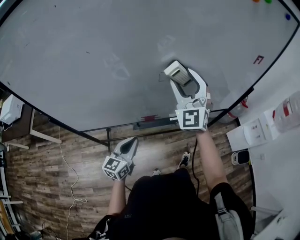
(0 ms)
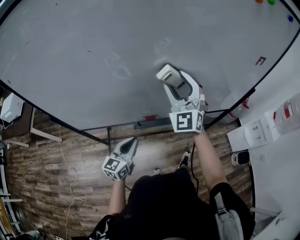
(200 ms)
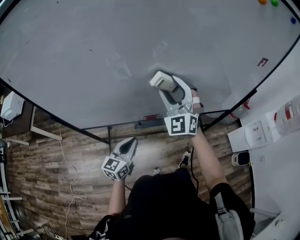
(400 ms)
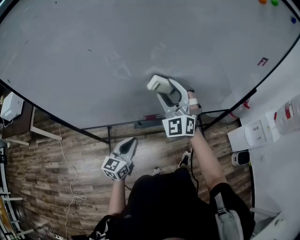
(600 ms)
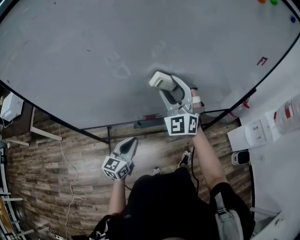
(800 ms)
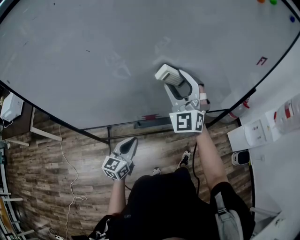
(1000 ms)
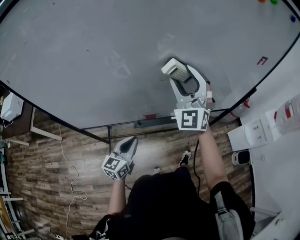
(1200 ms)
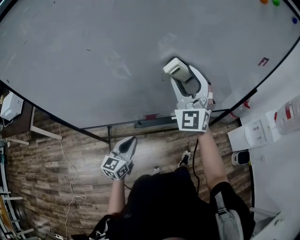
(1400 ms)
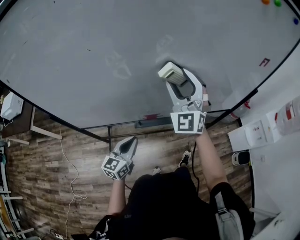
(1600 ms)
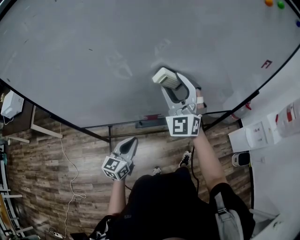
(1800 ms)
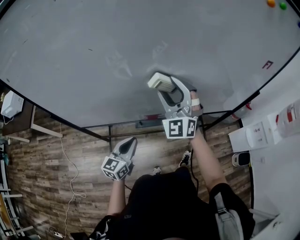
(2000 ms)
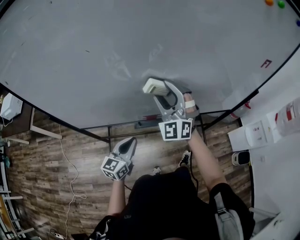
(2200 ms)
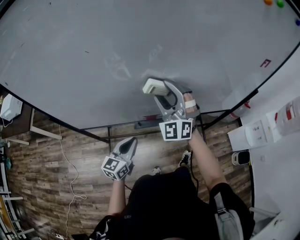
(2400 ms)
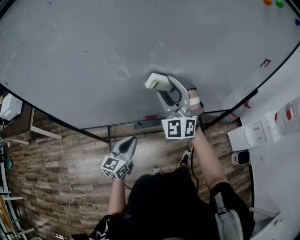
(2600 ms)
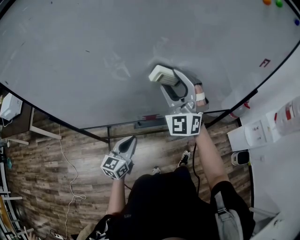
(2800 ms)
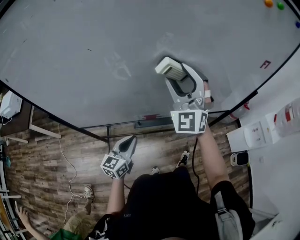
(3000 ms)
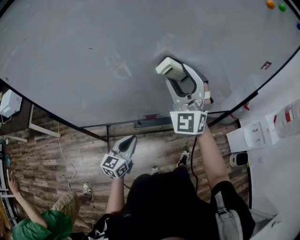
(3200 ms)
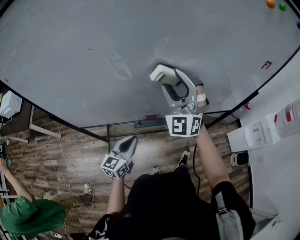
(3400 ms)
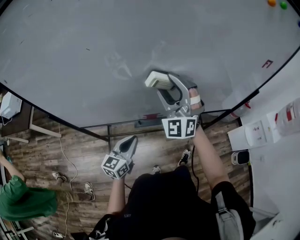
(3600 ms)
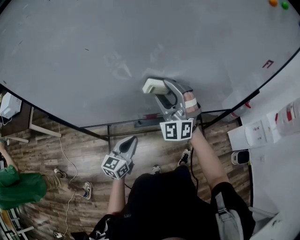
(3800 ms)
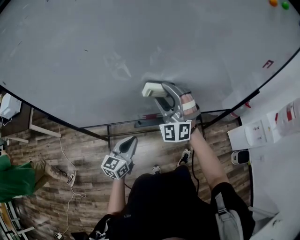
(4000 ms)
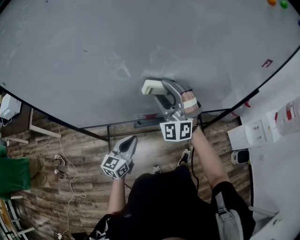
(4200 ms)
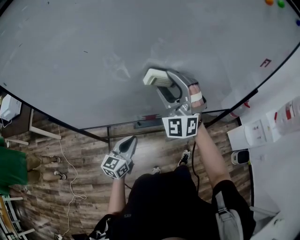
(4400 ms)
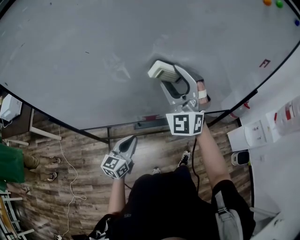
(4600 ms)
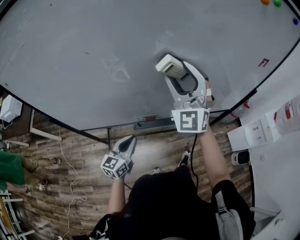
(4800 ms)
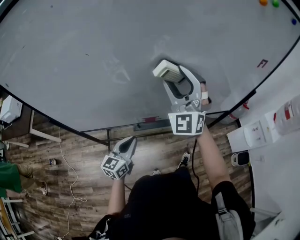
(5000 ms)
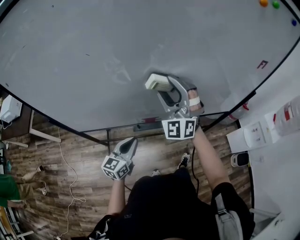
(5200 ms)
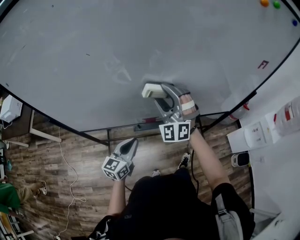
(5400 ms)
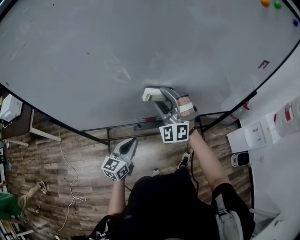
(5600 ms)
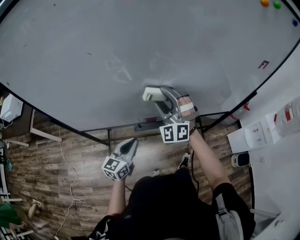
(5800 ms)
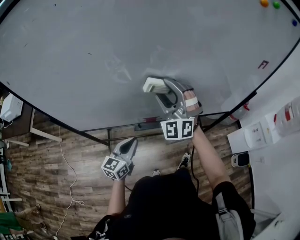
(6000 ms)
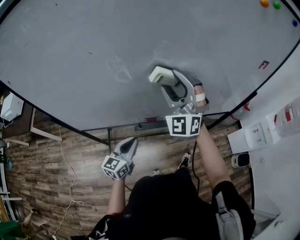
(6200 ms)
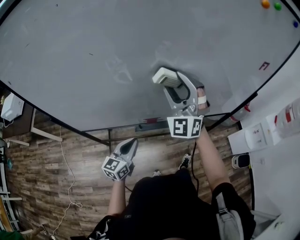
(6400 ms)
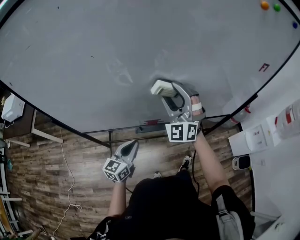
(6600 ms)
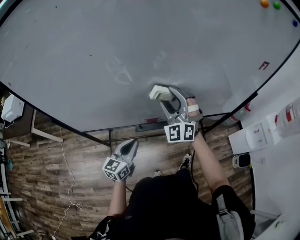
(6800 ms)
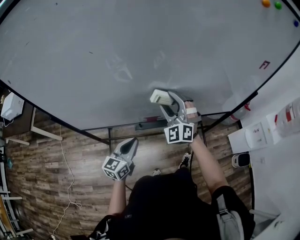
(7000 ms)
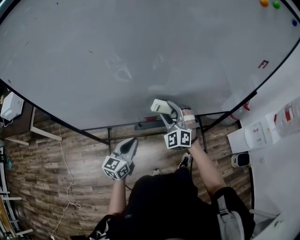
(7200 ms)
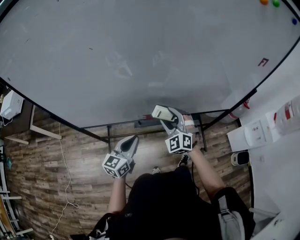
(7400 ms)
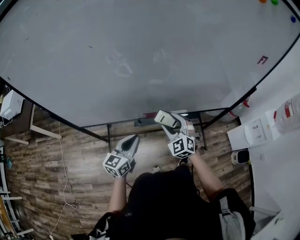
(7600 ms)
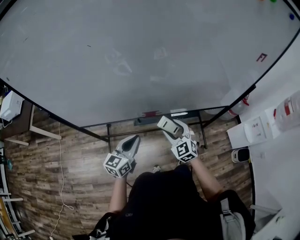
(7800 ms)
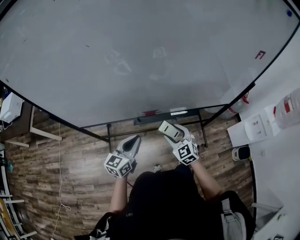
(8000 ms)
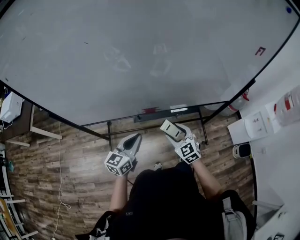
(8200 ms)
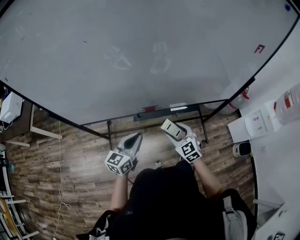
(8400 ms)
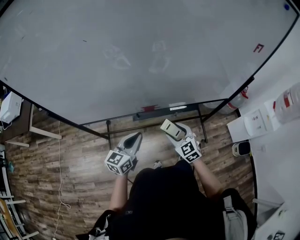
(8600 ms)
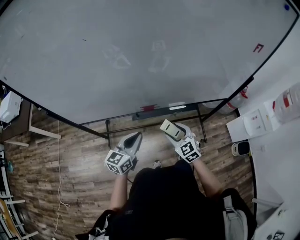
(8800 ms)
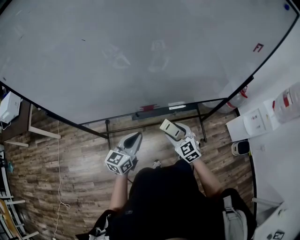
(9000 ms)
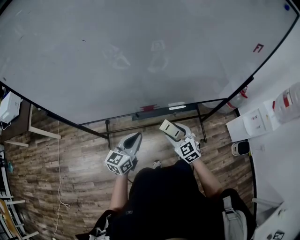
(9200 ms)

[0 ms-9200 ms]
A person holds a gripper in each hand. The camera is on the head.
1600 ms to 3000 ms: The right gripper reaches approximately 5 cm downward, then returns.
3000 ms to 4600 ms: The right gripper goes downward and returns, about 10 cm each way.
4600 ms to 6200 ms: The right gripper reaches approximately 15 cm downward, then returns.
6200 ms to 7600 ms: The right gripper moves downward, approximately 25 cm, and tilts its fingers some 30 degrees downward.
7600 ms to 9200 ms: The right gripper shifts some 10 cm backward and downward, and changes its angle by some 20 degrees.

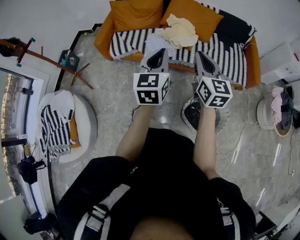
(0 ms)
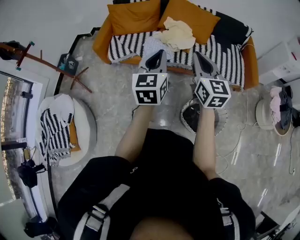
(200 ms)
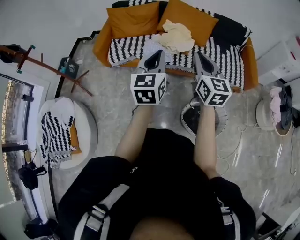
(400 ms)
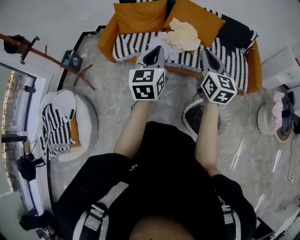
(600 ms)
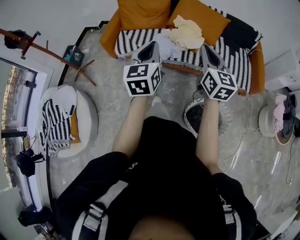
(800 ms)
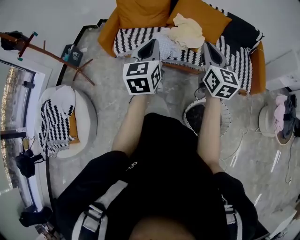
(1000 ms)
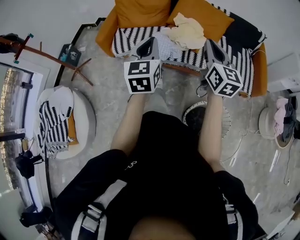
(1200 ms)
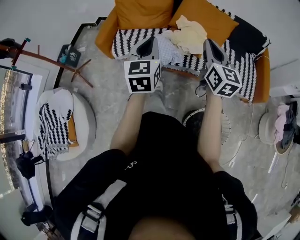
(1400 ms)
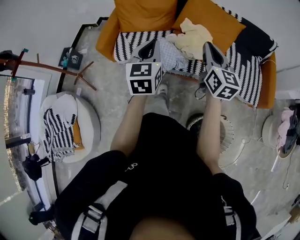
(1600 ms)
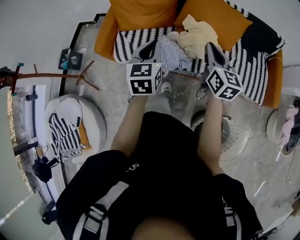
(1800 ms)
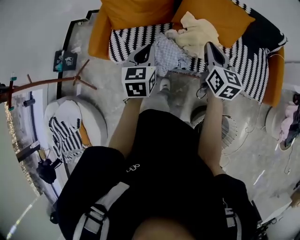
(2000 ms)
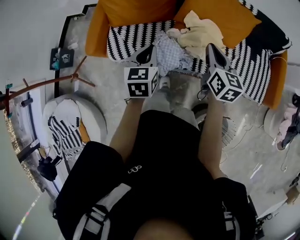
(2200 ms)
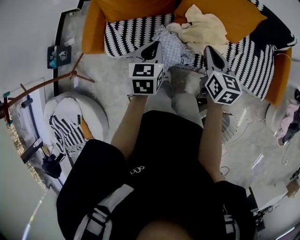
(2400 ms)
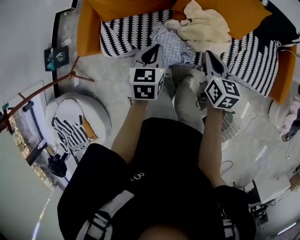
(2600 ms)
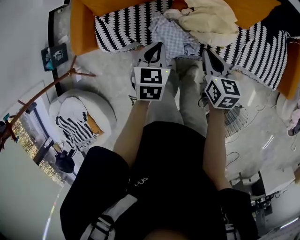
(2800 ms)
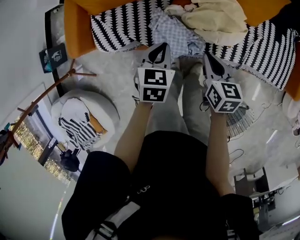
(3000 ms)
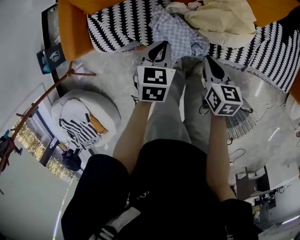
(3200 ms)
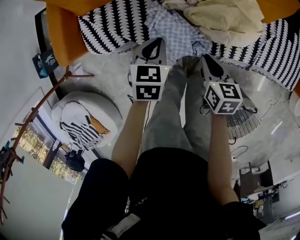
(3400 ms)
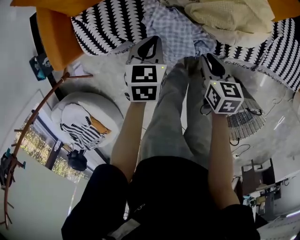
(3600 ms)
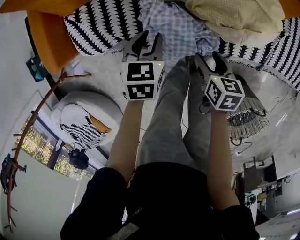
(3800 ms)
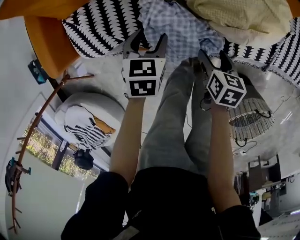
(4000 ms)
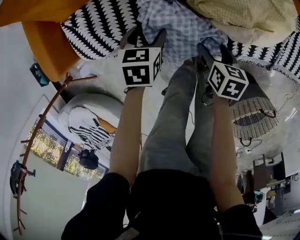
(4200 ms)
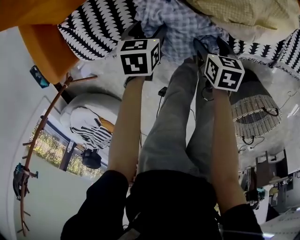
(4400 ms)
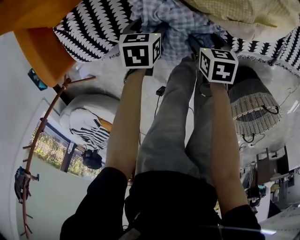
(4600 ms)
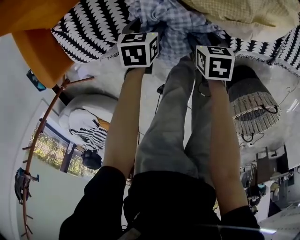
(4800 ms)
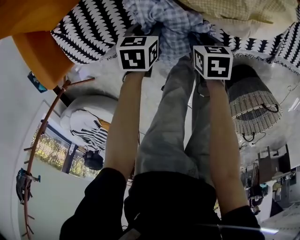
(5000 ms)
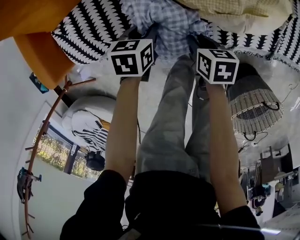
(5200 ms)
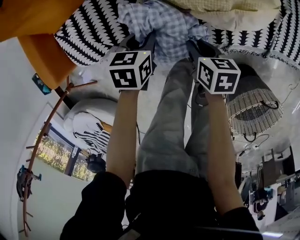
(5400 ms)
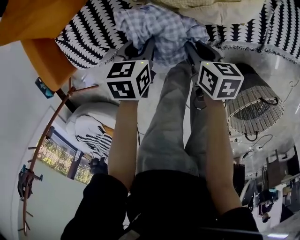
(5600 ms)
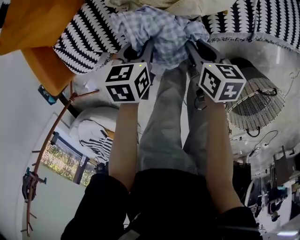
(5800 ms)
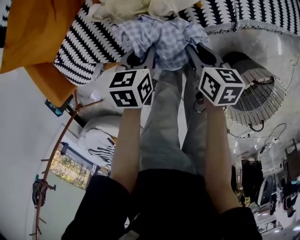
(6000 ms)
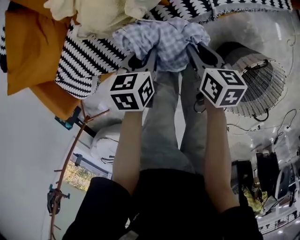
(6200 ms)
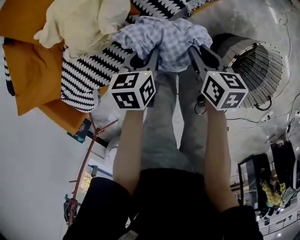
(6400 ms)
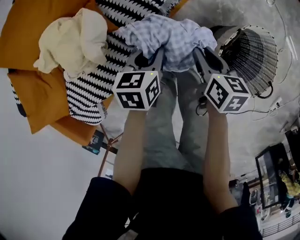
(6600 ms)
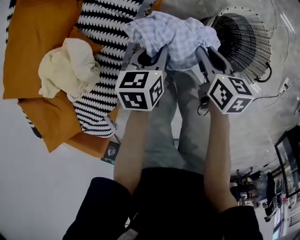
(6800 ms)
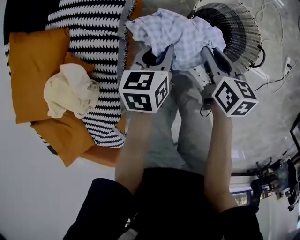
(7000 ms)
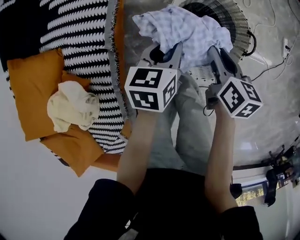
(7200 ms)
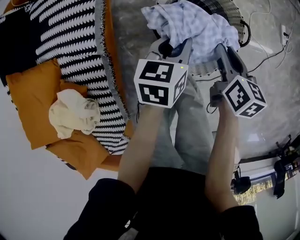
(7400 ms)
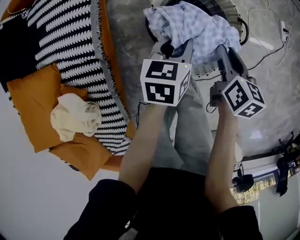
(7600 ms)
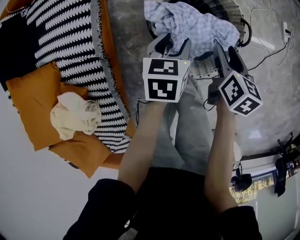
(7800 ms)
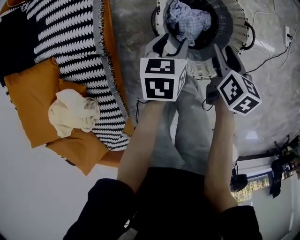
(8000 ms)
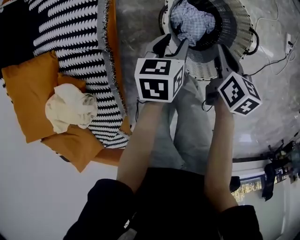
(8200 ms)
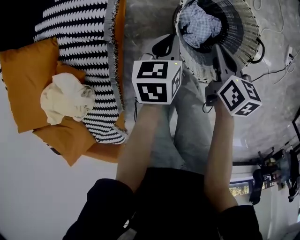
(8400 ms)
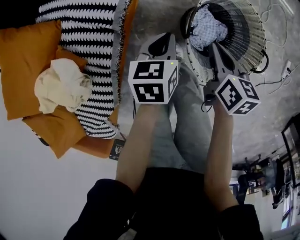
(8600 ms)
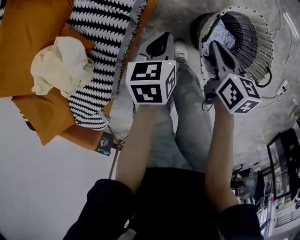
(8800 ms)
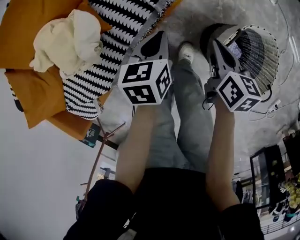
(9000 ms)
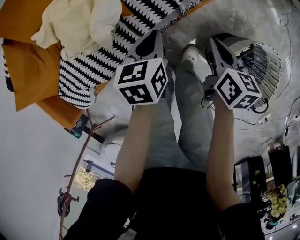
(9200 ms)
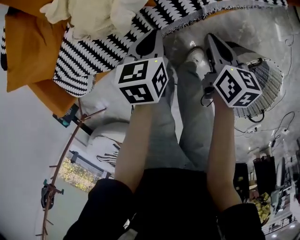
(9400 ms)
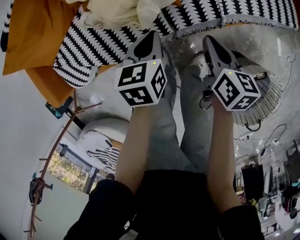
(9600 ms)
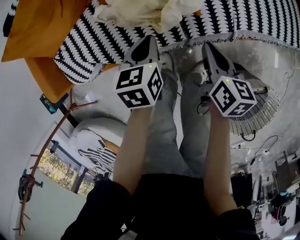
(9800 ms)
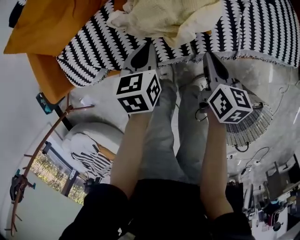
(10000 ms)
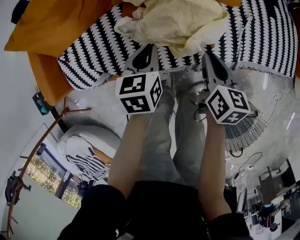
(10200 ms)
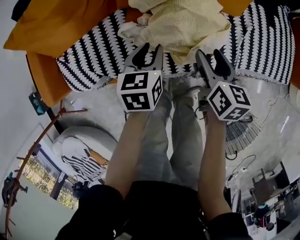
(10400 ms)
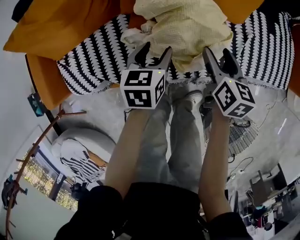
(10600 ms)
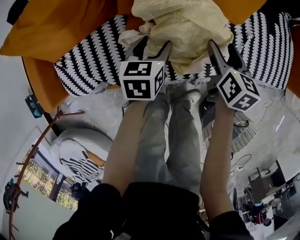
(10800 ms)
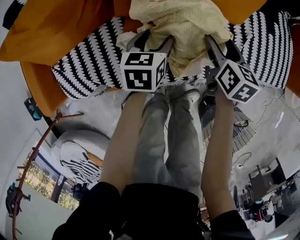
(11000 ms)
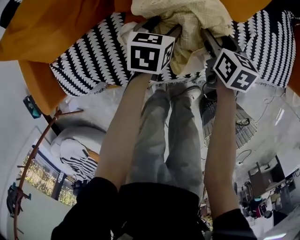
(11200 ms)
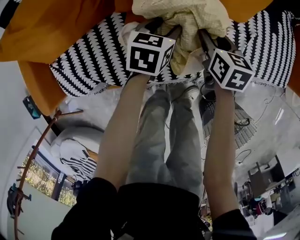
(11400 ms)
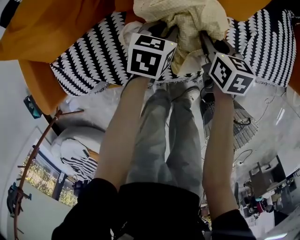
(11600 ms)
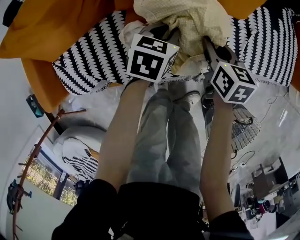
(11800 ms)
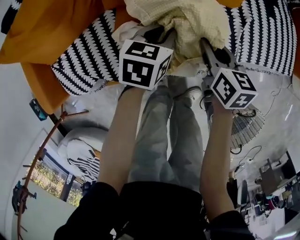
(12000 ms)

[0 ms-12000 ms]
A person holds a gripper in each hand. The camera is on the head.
0 ms to 1600 ms: The two grippers go approximately 25 cm forward.
1600 ms to 3000 ms: Both grippers move downward and forward, about 35 cm. The right gripper tilts its fingers approximately 30 degrees downward. Meanwhile the left gripper tips its fingers downward by about 30 degrees.
3000 ms to 4400 ms: Both grippers travel together downward, roughly 30 cm. The right gripper changes its angle by approximately 20 degrees, and opens, while the left gripper opens.
4400 ms to 6000 ms: The two grippers go approximately 20 cm to the right, upward and backward. The left gripper closes. Meanwhile the right gripper turns by roughly 30 degrees, and closes its fingers.
6000 ms to 7600 ms: Both grippers are carried some 60 cm. The right gripper turns by some 90 degrees. Meanwhile the left gripper changes its angle by some 80 degrees.
7600 ms to 9000 ms: The right gripper changes place by about 30 cm, rotates approximately 50 degrees, and opens, then closes again. Meanwhile the left gripper moves about 35 cm, turns by roughly 50 degrees, and opens and closes again.
9000 ms to 10400 ms: The left gripper shifts by some 40 cm, and changes its angle by about 40 degrees, while the right gripper ends up about 40 cm from where it was, changes its angle by about 40 degrees, and opens.
10400 ms to 12000 ms: The right gripper travels forward and back again, approximately 10 cm each way, and closes. The left gripper shifts some 5 cm to the right, rotates some 20 degrees, and opens, then closes again.

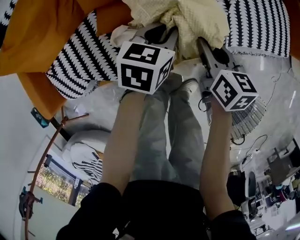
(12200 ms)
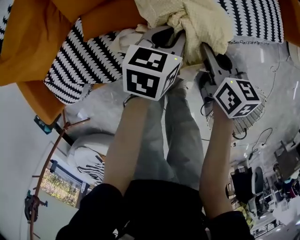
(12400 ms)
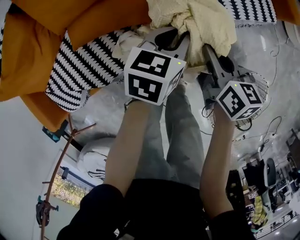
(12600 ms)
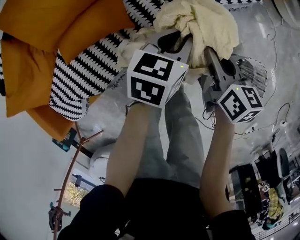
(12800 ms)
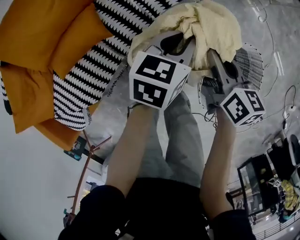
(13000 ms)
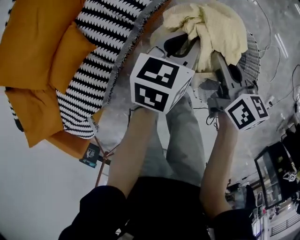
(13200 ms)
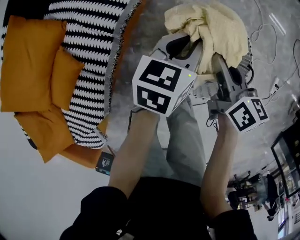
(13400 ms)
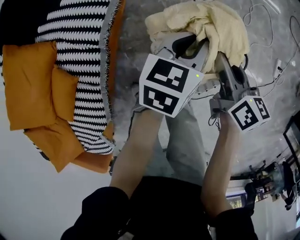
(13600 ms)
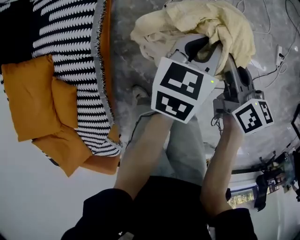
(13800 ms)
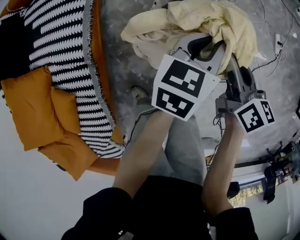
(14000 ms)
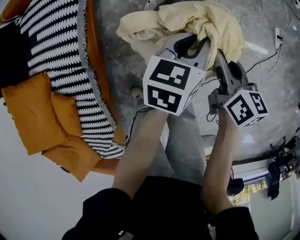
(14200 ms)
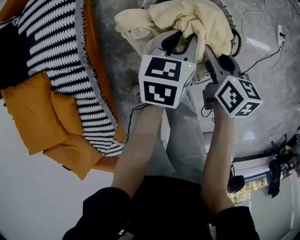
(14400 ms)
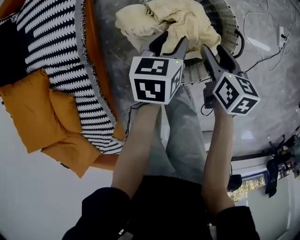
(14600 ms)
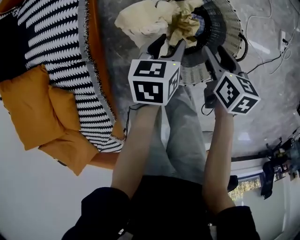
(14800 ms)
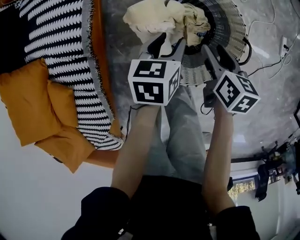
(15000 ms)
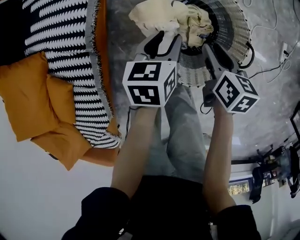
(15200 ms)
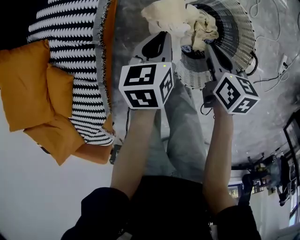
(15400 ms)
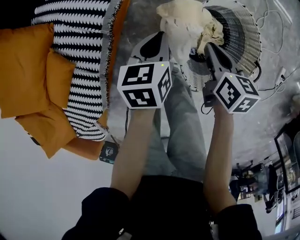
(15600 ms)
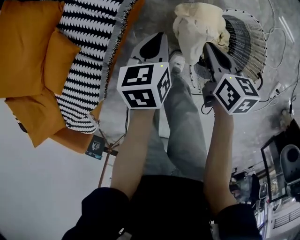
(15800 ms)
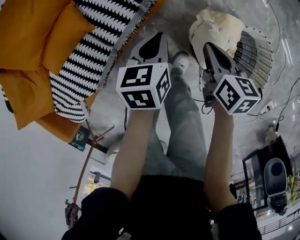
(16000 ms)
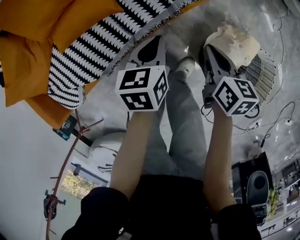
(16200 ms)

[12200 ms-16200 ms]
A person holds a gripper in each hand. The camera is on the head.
12200 ms to 13600 ms: The pair of grippers is taken roughly 60 cm. The right gripper turns by about 70 degrees; the left gripper turns by roughly 60 degrees.
13600 ms to 14800 ms: The right gripper is displaced downward and to the right by some 15 cm, changes its angle by about 20 degrees, and opens, while the left gripper travels downward by approximately 10 cm, and opens its fingers.
14800 ms to 16200 ms: The left gripper shifts by approximately 40 cm, rotates about 60 degrees, and closes up. The right gripper moves approximately 35 cm, rotates some 50 degrees, and closes its fingers.
